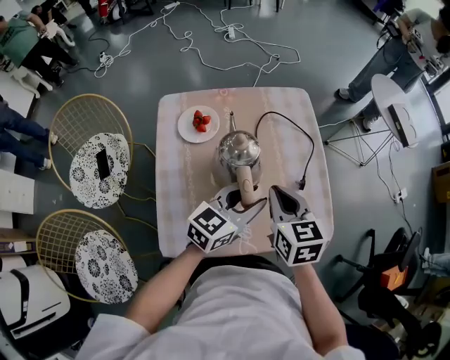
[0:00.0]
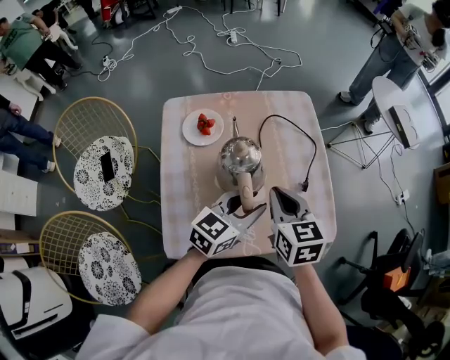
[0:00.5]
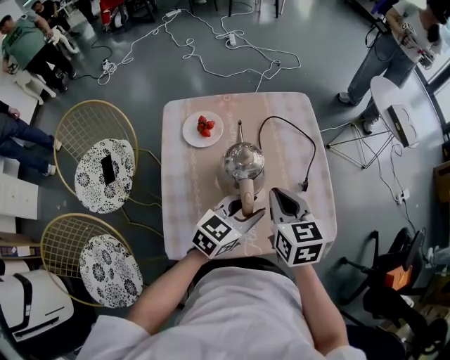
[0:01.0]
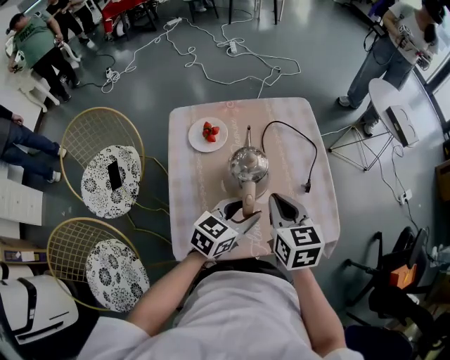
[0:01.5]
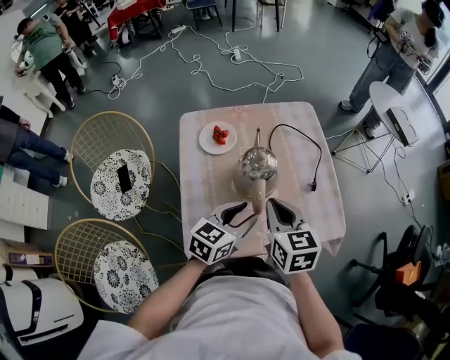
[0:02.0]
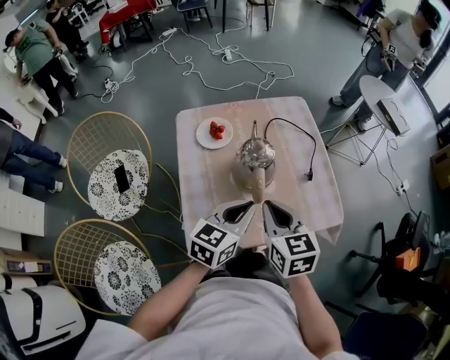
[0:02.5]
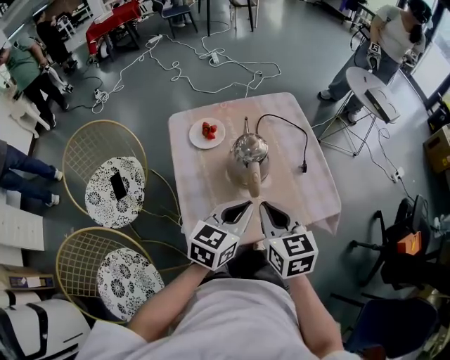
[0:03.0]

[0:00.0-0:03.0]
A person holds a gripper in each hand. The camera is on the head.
0:00.0 to 0:01.5: The left gripper moves some 5 cm.
0:01.5 to 0:03.0: The right gripper goes roughly 10 cm backward; the left gripper moves backward and upward, some 10 cm, and closes.

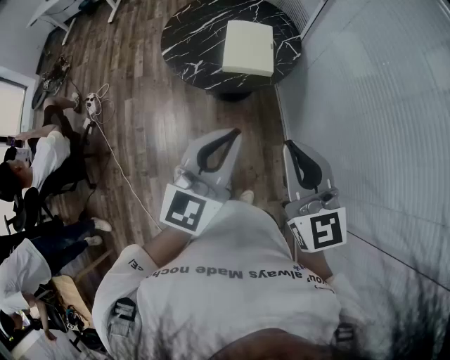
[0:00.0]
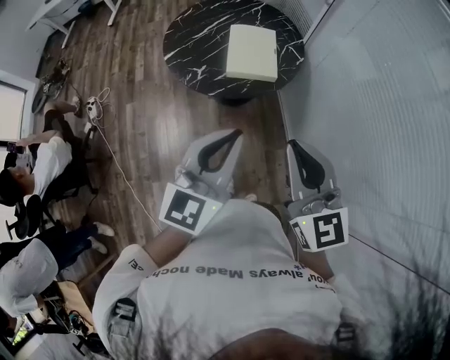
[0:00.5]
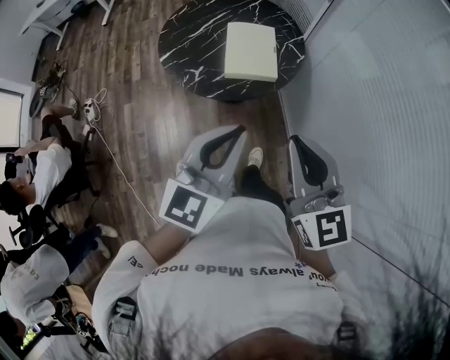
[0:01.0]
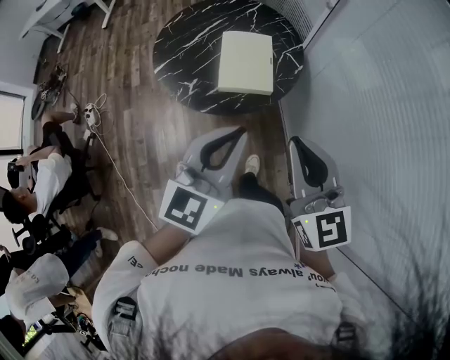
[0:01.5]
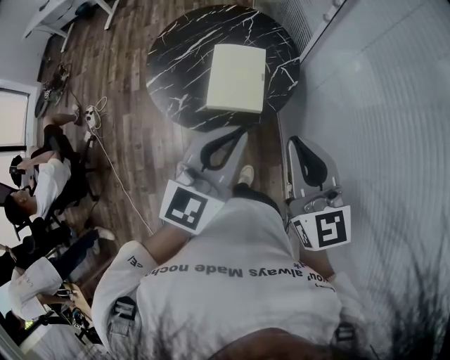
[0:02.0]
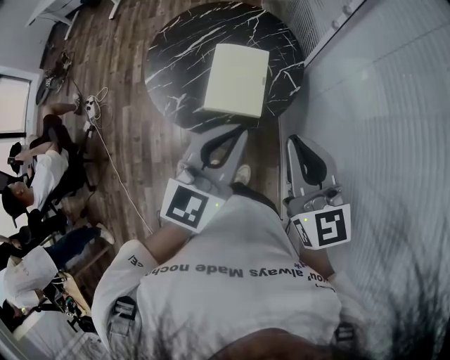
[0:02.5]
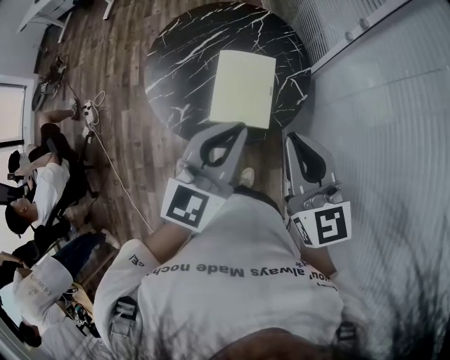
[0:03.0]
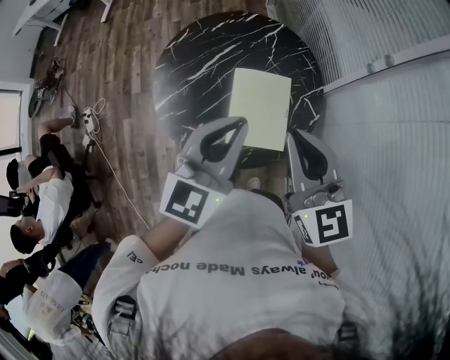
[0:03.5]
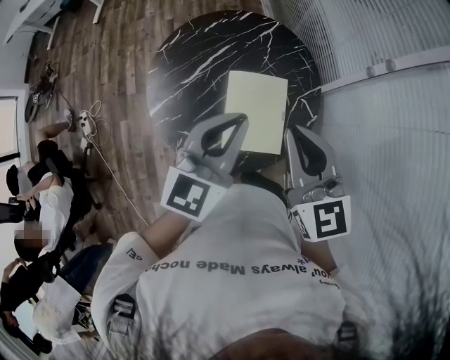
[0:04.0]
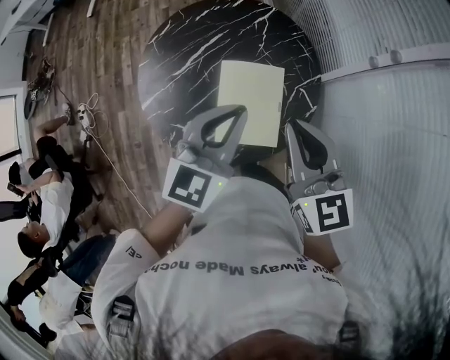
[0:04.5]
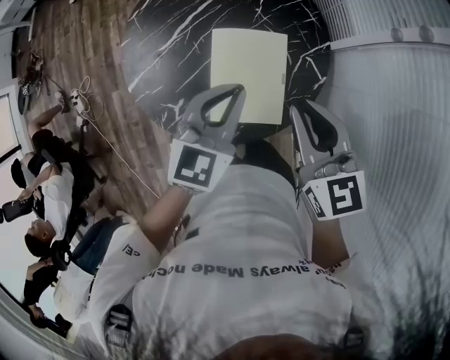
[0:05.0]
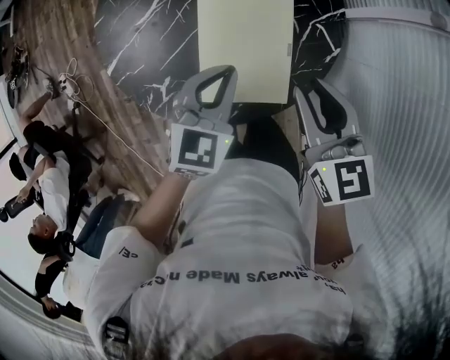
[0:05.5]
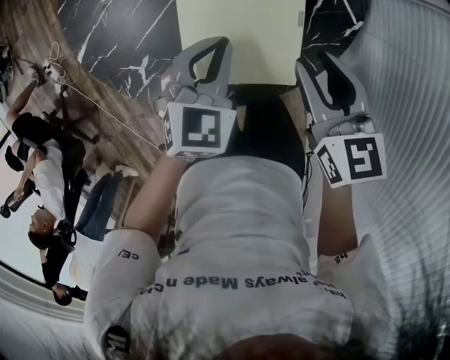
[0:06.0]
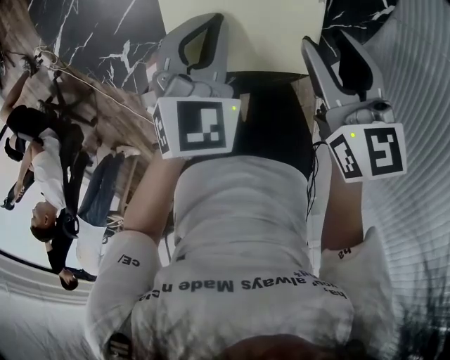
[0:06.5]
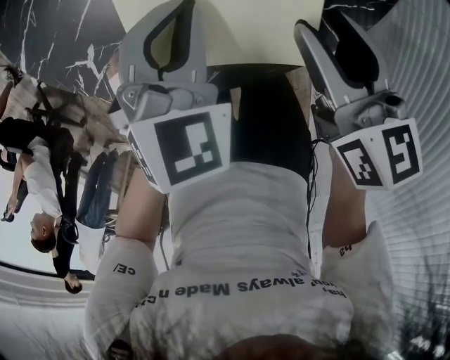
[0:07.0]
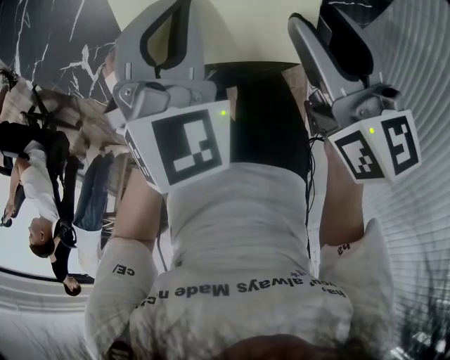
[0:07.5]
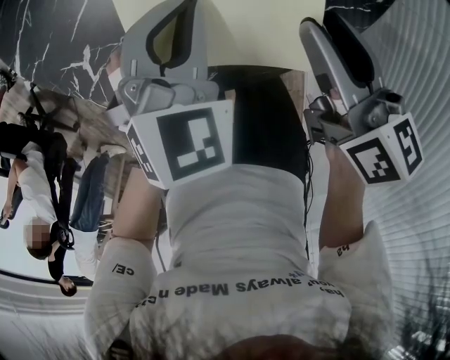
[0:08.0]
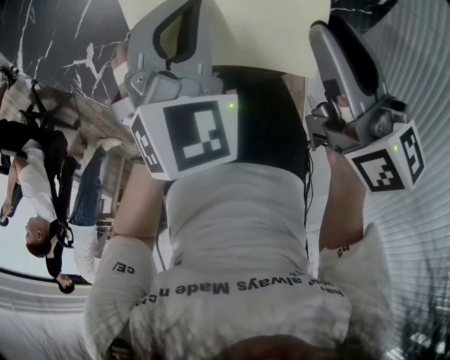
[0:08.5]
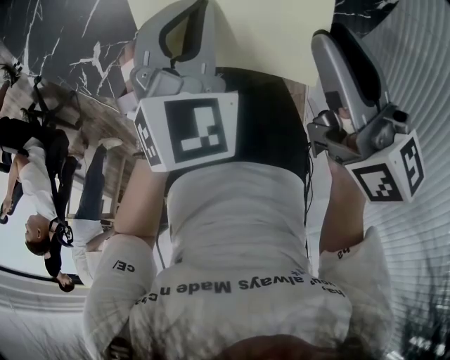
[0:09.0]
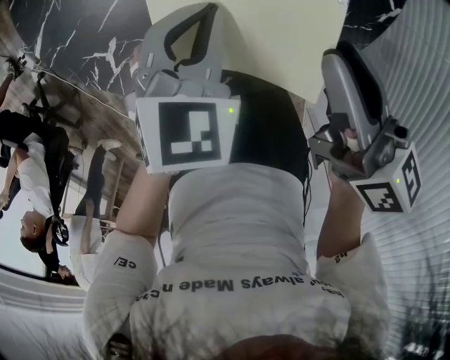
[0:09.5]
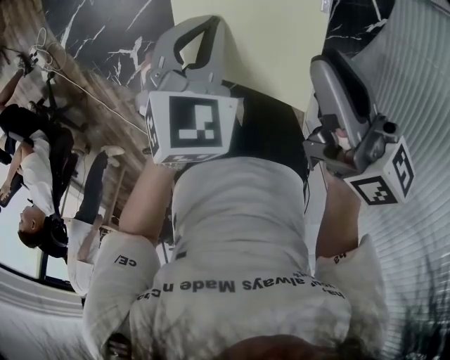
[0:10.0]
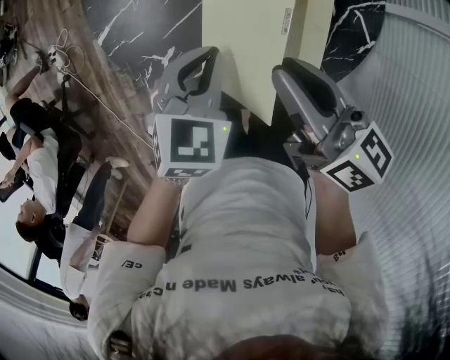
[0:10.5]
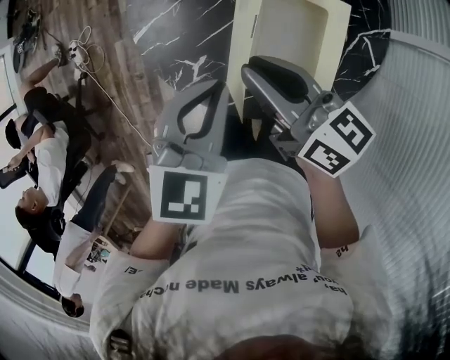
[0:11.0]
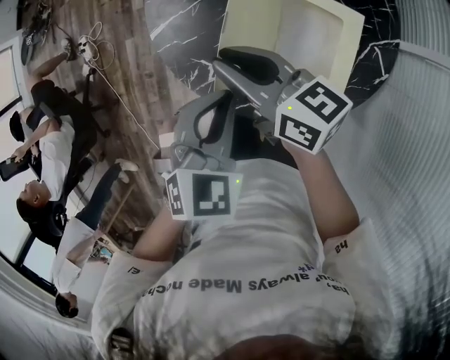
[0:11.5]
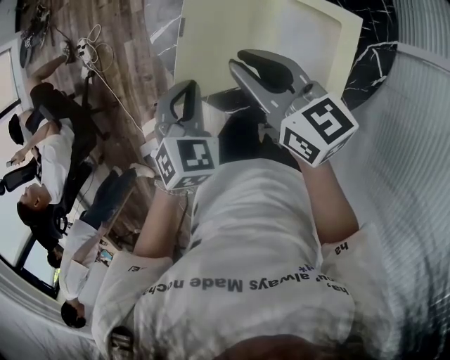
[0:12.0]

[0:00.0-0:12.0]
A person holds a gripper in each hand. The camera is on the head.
0:00.0 to 0:02.0: Both grippers move forward, about 25 cm.
0:02.0 to 0:04.0: The grippers both shift forward and to the left by roughly 30 cm.
0:04.0 to 0:06.0: Both grippers move downward, approximately 40 cm. The right gripper swivels about 30 degrees, and opens its fingers, while the left gripper tips its fingers downward by about 30 degrees.
0:06.0 to 0:08.0: The two grippers go about 10 cm downward. The right gripper changes its angle by roughly 30 degrees.
0:08.0 to 0:10.0: The left gripper heads upward, covering roughly 5 cm; the right gripper shifts roughly 10 cm upward.
0:10.0 to 0:12.0: The right gripper shifts by roughly 25 cm, and changes its angle by approximately 30 degrees. Meanwhile the left gripper shifts by approximately 25 cm, and changes its angle by about 20 degrees.

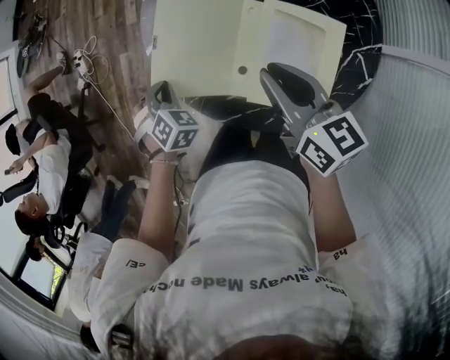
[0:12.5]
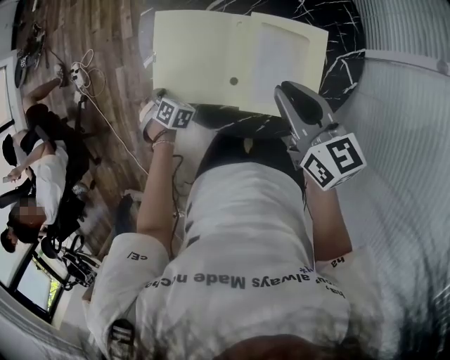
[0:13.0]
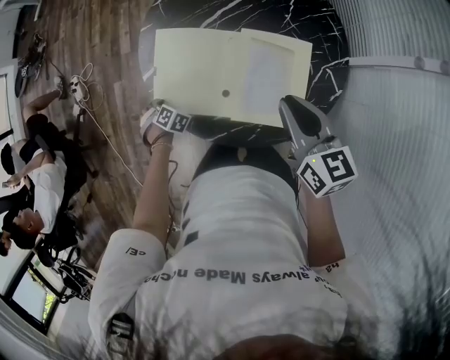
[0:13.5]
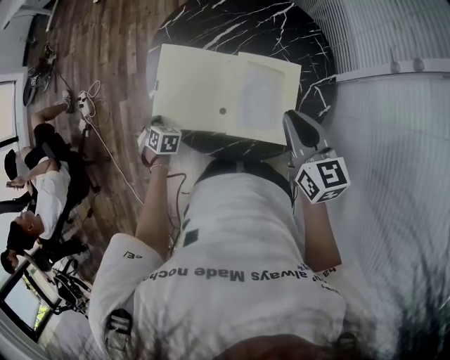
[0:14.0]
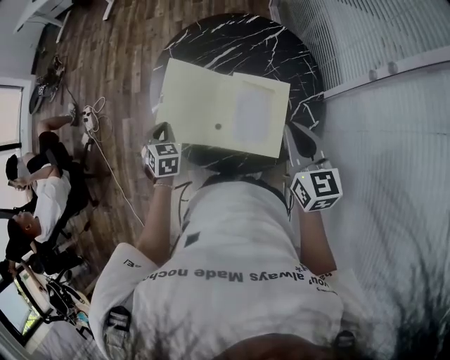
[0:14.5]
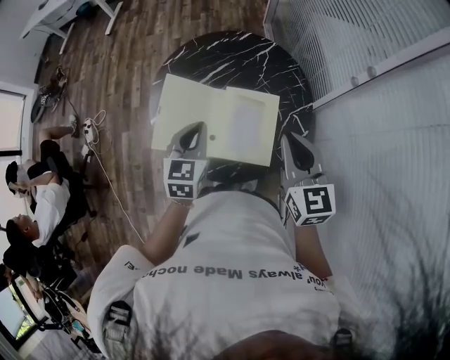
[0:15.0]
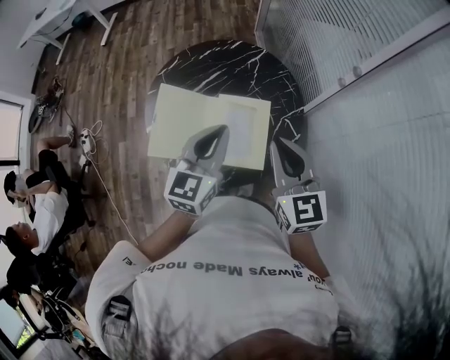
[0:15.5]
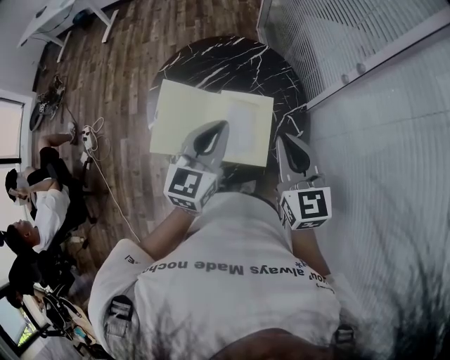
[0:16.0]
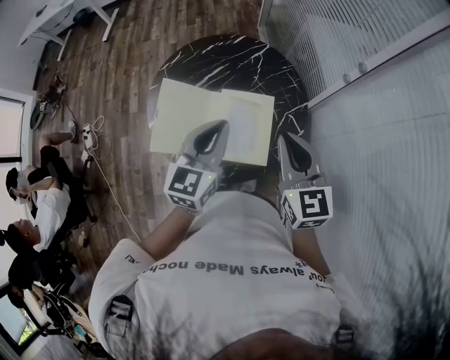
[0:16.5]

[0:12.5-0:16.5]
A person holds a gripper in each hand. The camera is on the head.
0:12.5 to 0:14.5: The right gripper ends up some 20 cm from where it was, and changes its angle by approximately 30 degrees; the left gripper moves upward, approximately 10 cm, and turns by some 30 degrees.
0:14.5 to 0:16.5: The left gripper travels upward and to the right by roughly 35 cm, and tilts its fingers about 40 degrees upward, while the right gripper heads upward, covering roughly 10 cm.

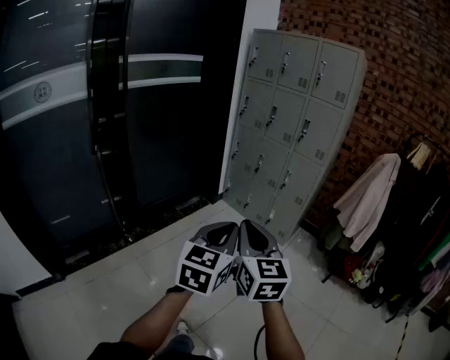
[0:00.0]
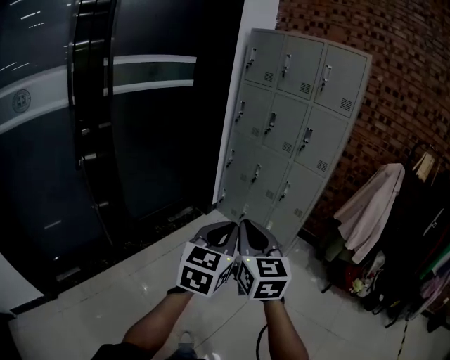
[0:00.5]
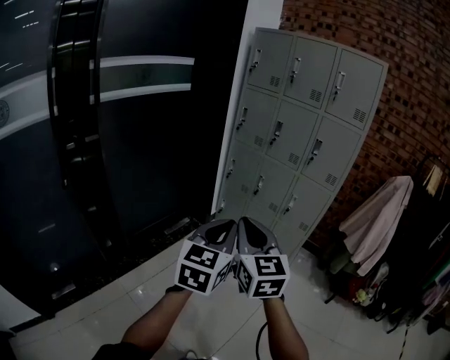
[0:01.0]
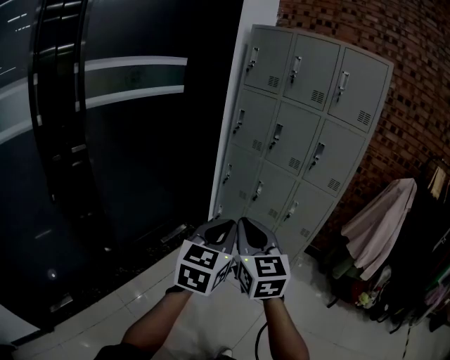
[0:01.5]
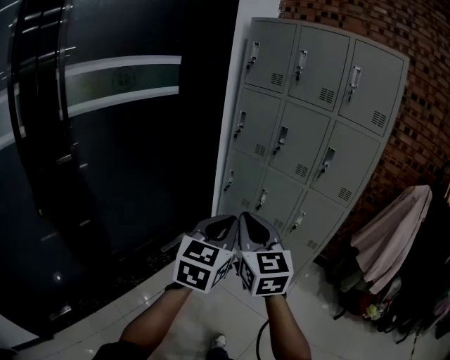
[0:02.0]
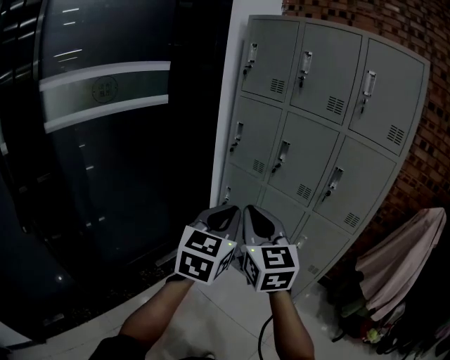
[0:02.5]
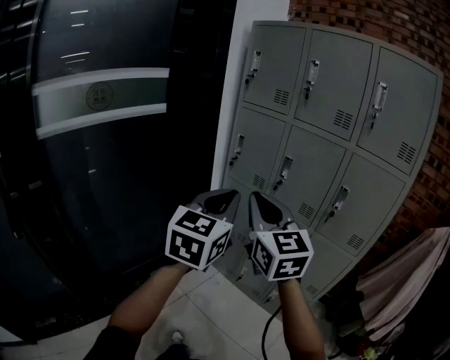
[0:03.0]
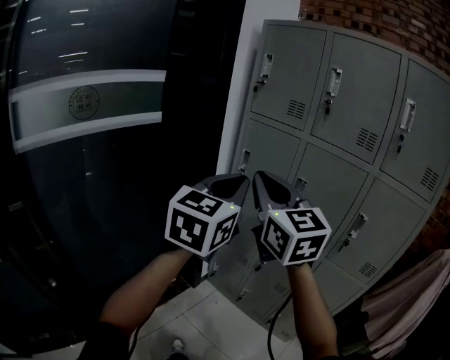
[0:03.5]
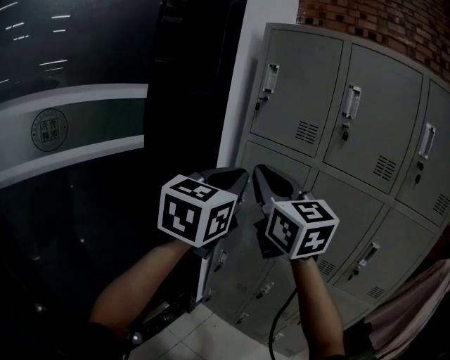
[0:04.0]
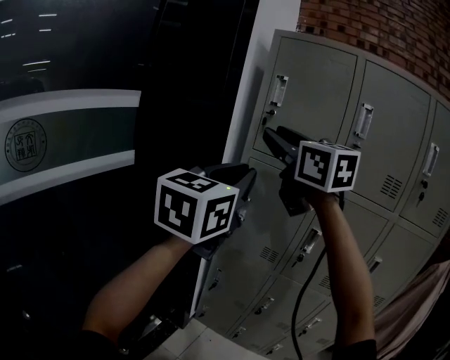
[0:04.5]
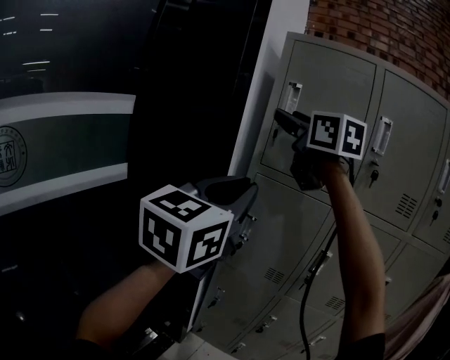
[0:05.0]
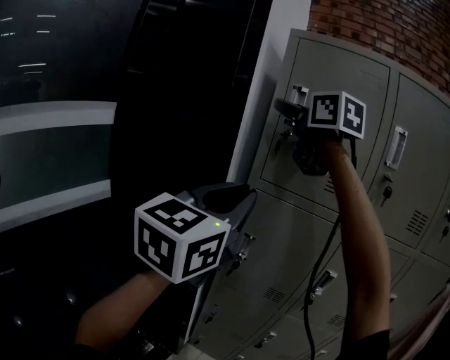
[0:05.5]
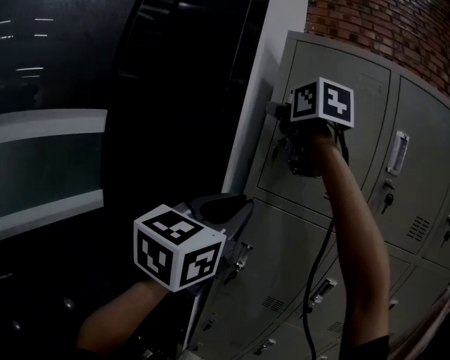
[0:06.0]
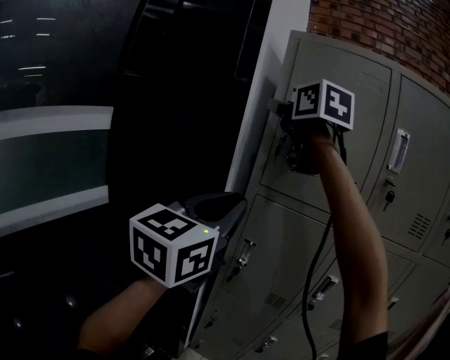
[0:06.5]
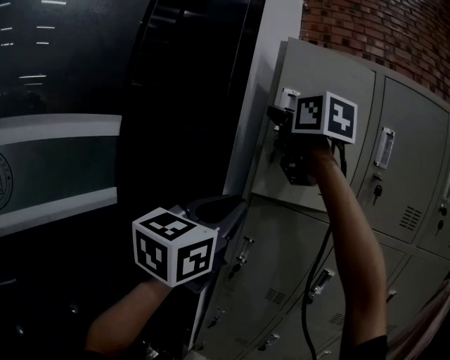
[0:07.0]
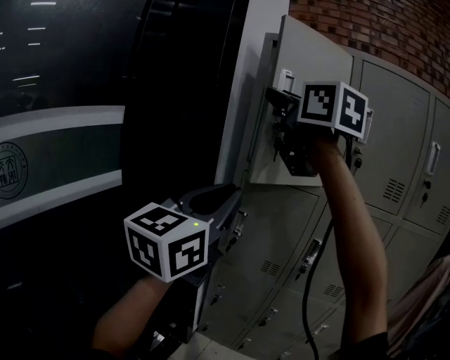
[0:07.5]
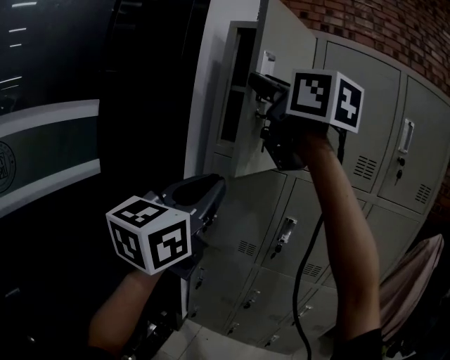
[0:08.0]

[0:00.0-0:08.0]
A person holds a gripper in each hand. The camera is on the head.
0:00.0 to 0:02.0: The two grippers travel together, forward, roughly 50 cm.
0:02.0 to 0:04.0: The pair of grippers is taken forward, some 50 cm. Both grippers move upward, about 20 cm.
0:04.0 to 0:06.0: The right gripper heads forward and upward, covering roughly 40 cm, changes its angle by roughly 20 degrees, and opens up. Meanwhile the left gripper heads forward, covering approximately 20 cm.
0:06.0 to 0:08.0: The right gripper moves backward, about 25 cm, and closes; the left gripper moves backward and to the right, about 15 cm.
